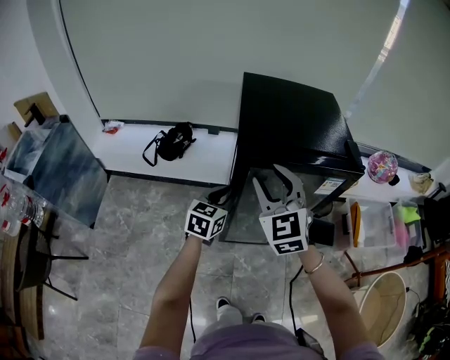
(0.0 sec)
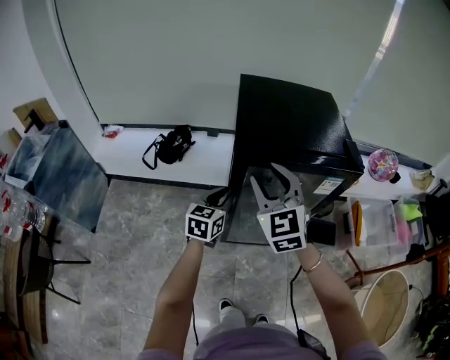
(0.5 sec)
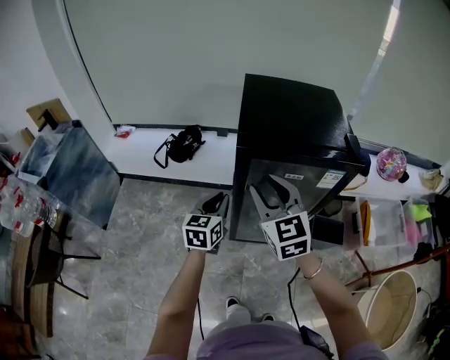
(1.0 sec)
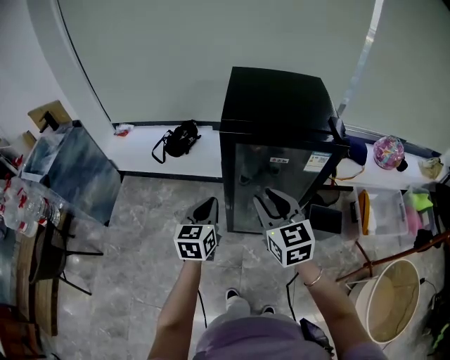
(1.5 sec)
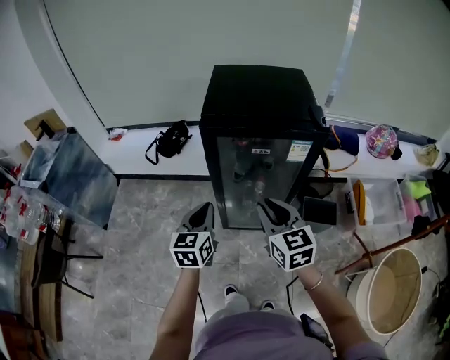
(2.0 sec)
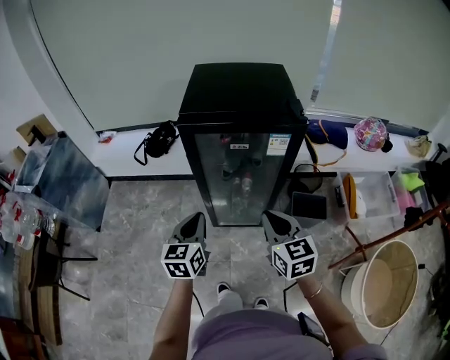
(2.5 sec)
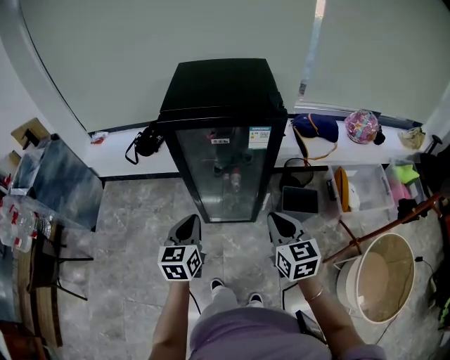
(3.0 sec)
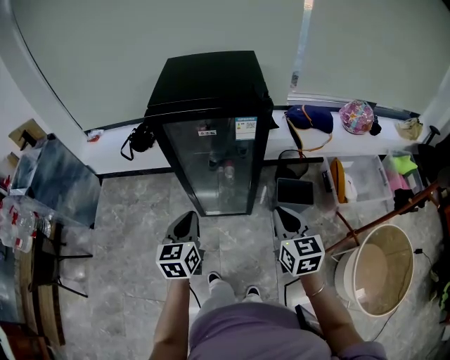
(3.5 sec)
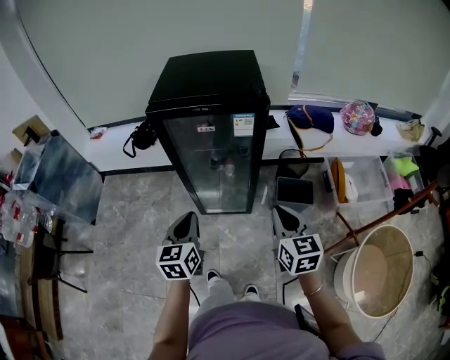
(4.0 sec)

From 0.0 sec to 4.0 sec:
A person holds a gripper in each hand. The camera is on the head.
From 0.0 sec to 2.0 sec: The right gripper is displaced backward, to the right and downward by roughly 20 cm, and swivels some 30 degrees. Meanwhile the left gripper heads backward, covering roughly 15 cm, and rotates about 20 degrees.
From 2.0 sec to 4.0 sec: The right gripper travels to the right and backward by approximately 20 cm. The left gripper goes approximately 15 cm backward and to the right.

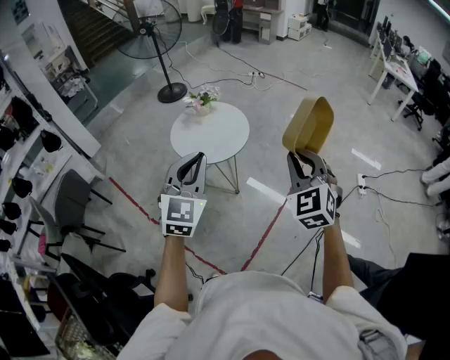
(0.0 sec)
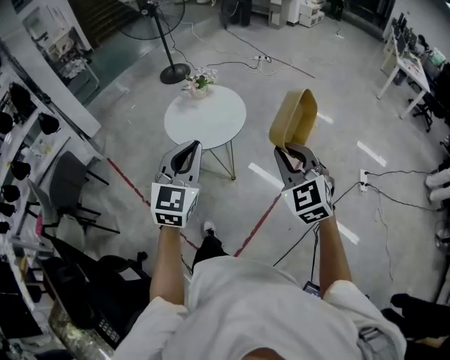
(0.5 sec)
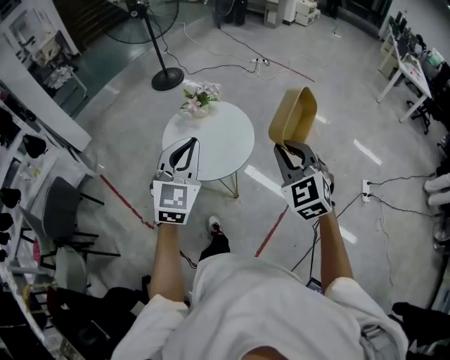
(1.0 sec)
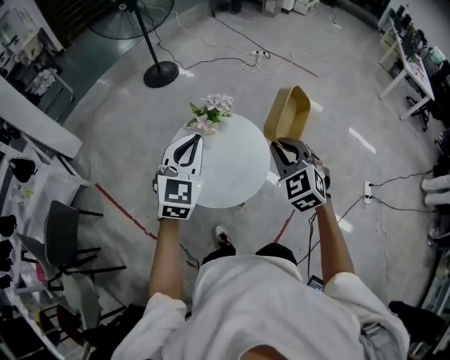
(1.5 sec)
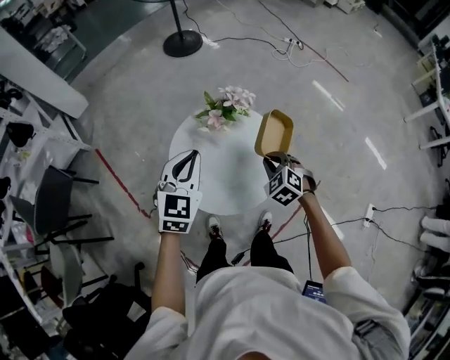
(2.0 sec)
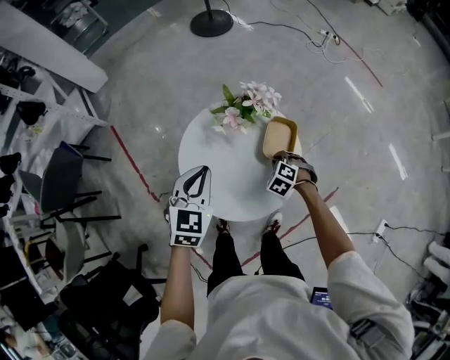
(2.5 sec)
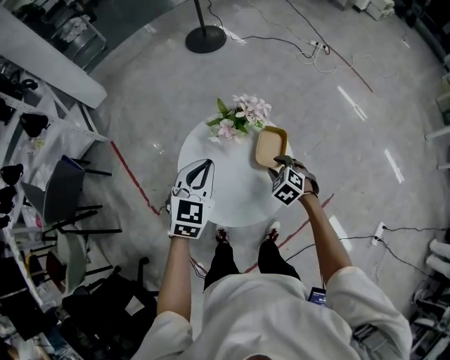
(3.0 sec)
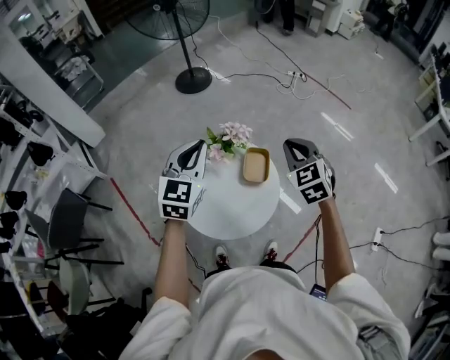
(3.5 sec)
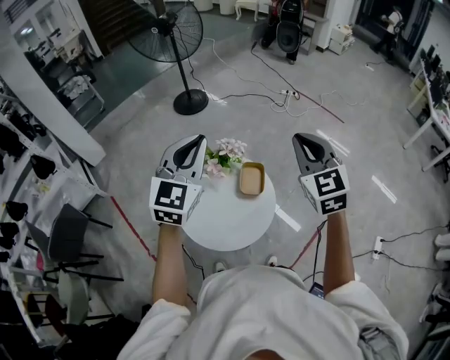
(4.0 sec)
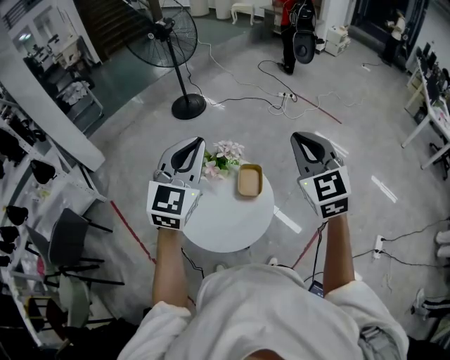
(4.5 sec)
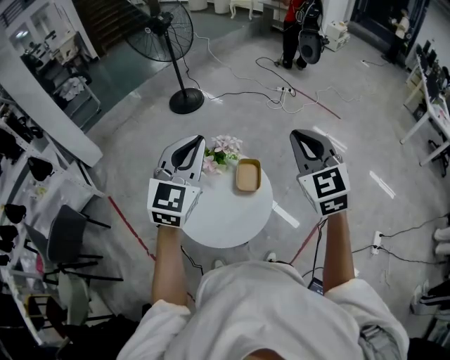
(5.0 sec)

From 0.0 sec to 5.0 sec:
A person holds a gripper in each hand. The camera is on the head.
From 0.0 sec to 2.5 sec: The pair of grippers is taken forward, approximately 60 cm. The left gripper is displaced downward by approximately 25 cm, and swivels roughly 40 degrees. The right gripper heads downward, covering roughly 50 cm, and tips its fingers downward by approximately 50 degrees.
From 2.5 sec to 5.0 sec: The right gripper heads upward, covering approximately 50 cm, tilts its fingers some 60 degrees upward, and opens, then closes once more. Meanwhile the left gripper is displaced upward by about 30 cm, and changes its angle by approximately 30 degrees.

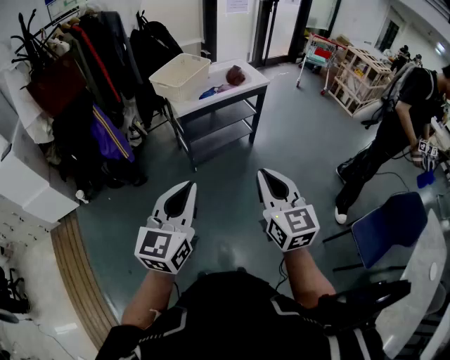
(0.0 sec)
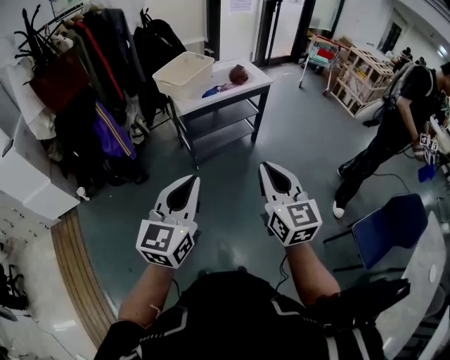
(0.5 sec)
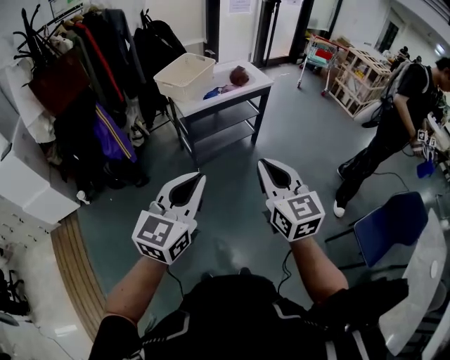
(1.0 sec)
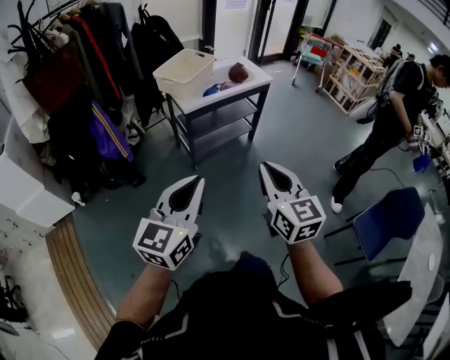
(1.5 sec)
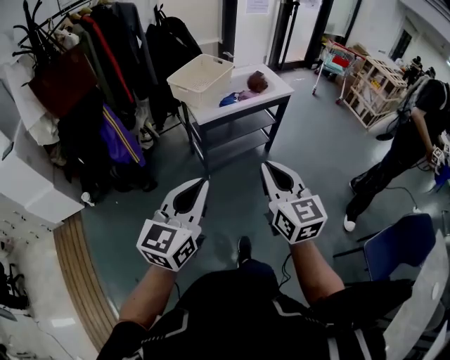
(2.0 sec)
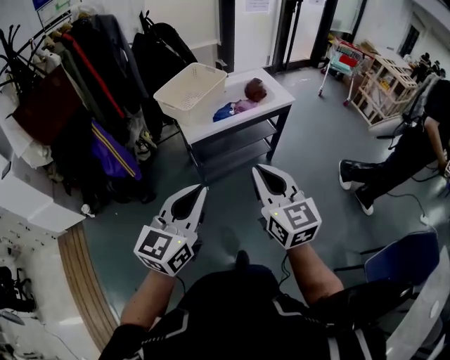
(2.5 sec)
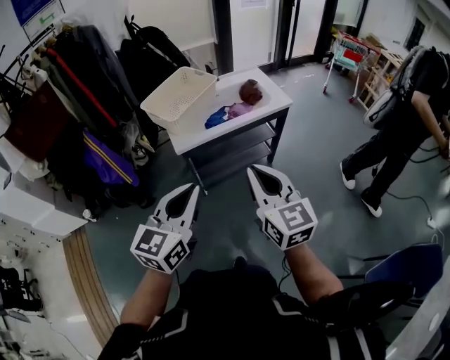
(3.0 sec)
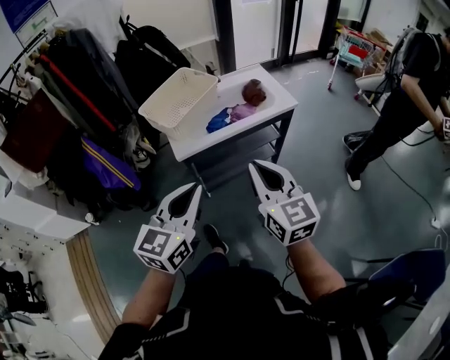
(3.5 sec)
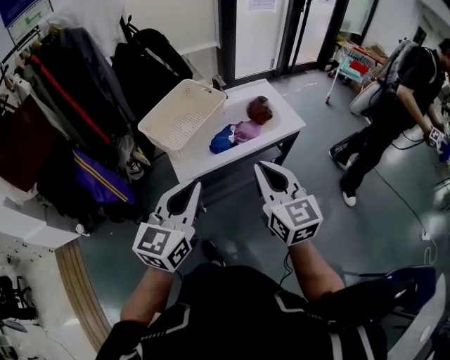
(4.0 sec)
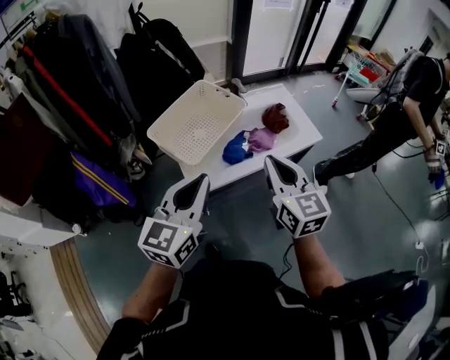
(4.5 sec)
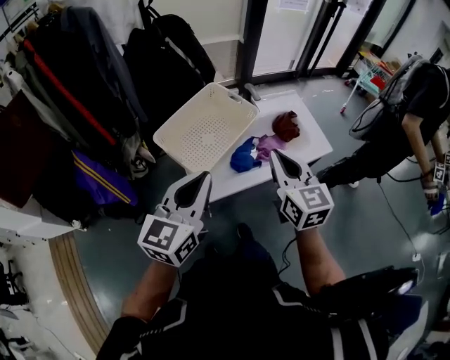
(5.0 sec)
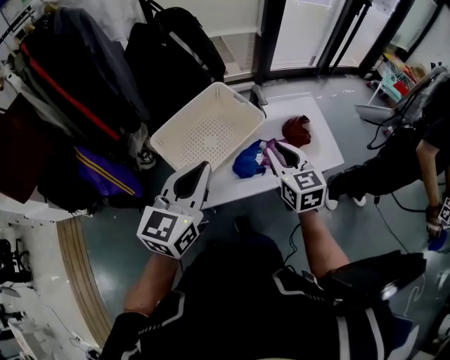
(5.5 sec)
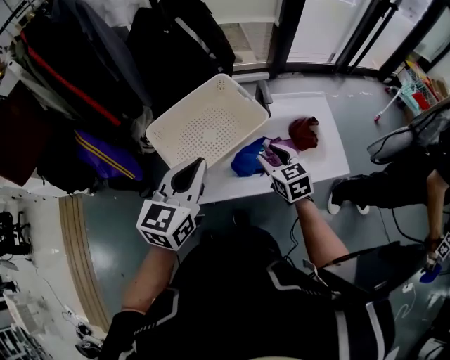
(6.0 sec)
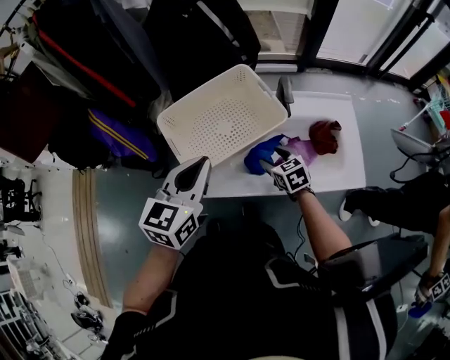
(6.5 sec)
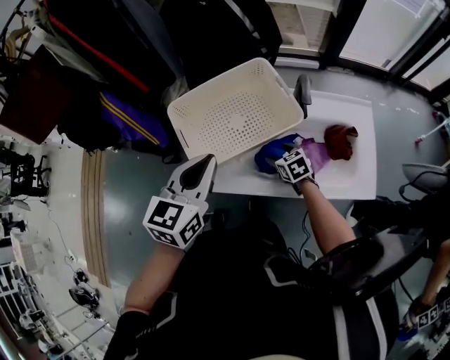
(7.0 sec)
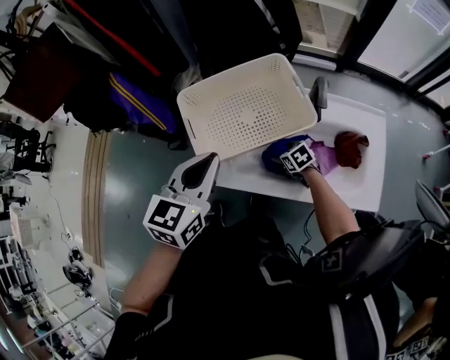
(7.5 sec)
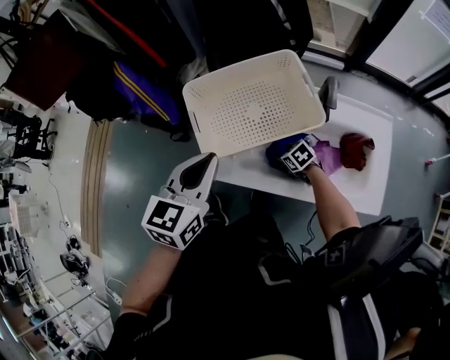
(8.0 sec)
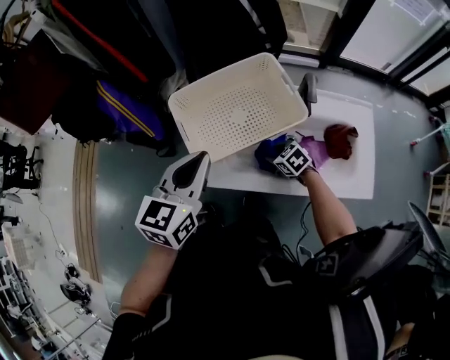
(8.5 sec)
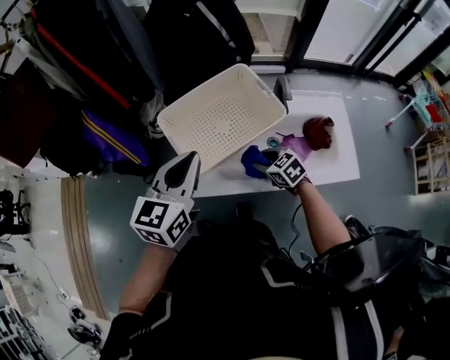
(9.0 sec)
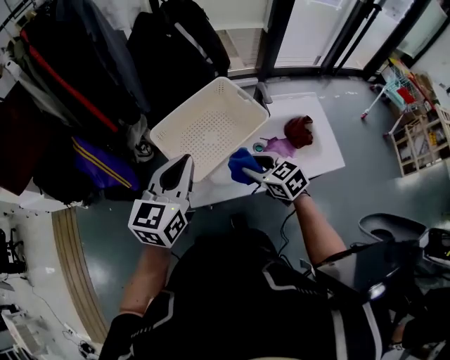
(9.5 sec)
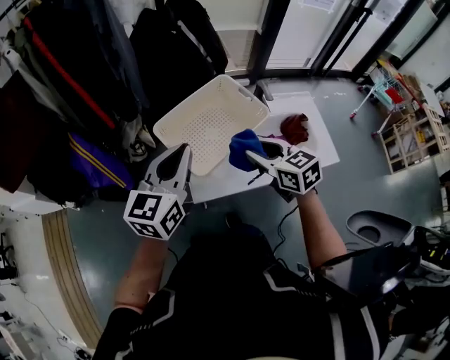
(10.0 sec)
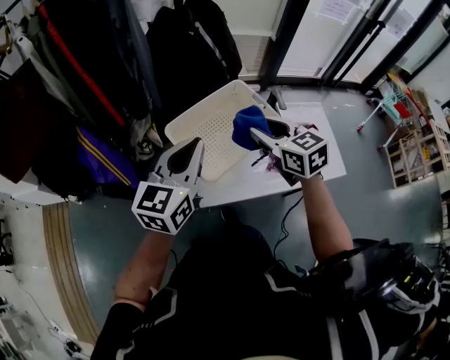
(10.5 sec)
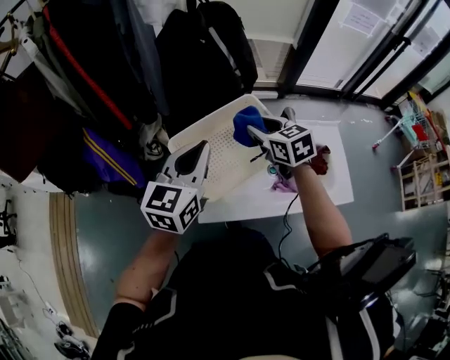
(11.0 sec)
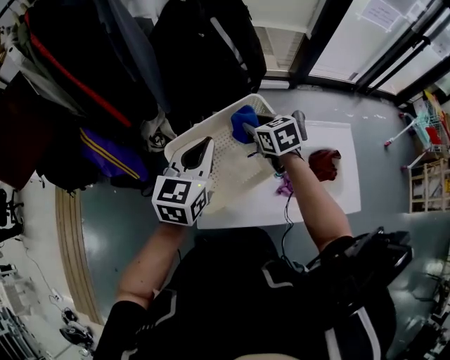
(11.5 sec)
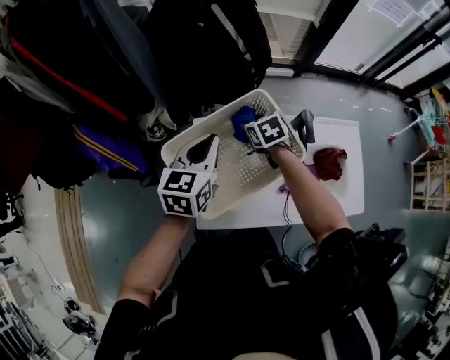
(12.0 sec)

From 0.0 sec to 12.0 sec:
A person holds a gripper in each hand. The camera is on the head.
From 0.0 sec to 2.0 sec: The two grippers go approximately 15 cm forward and to the left.
From 2.0 sec to 4.0 sec: Both grippers travel together forward, approximately 40 cm.
From 4.0 sec to 6.0 sec: The right gripper moves forward and downward, approximately 40 cm, changes its angle by roughly 30 degrees, and opens; the left gripper shifts approximately 25 cm forward.
From 6.0 sec to 8.0 sec: The left gripper moves some 5 cm, and rotates approximately 20 degrees. The right gripper is displaced downward by some 25 cm, swivels some 50 degrees, and opens and closes again.
From 8.0 sec to 10.0 sec: The left gripper goes roughly 5 cm upward, and swivels some 30 degrees. The right gripper shifts some 35 cm upward, and tilts its fingers roughly 30 degrees upward.
From 10.0 sec to 12.0 sec: Both grippers travel together forward and downward, some 25 cm. The left gripper turns by about 20 degrees. The right gripper rotates some 30 degrees.

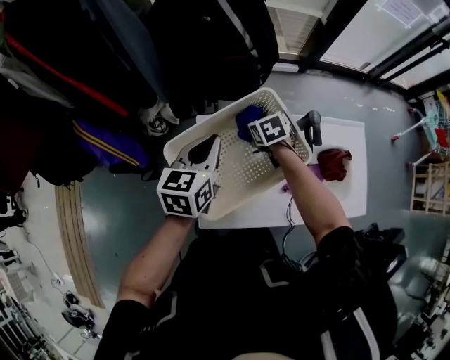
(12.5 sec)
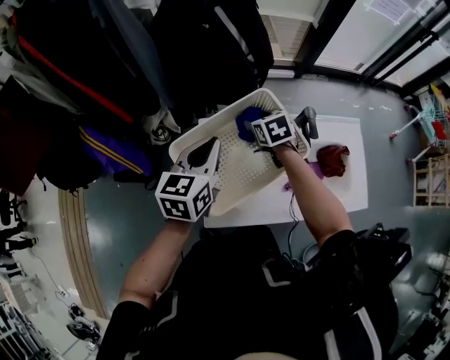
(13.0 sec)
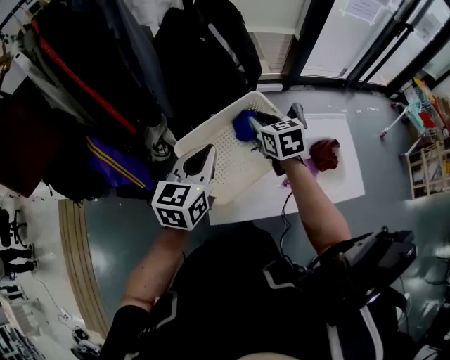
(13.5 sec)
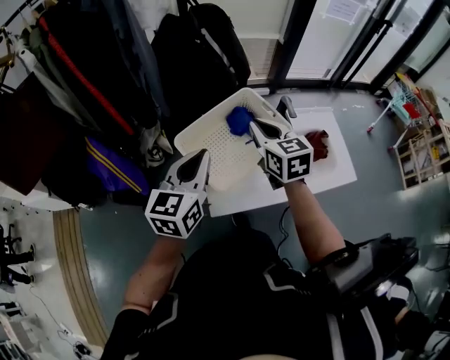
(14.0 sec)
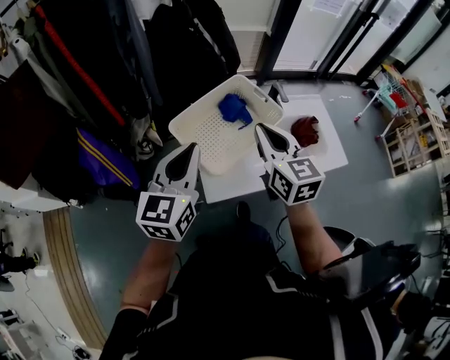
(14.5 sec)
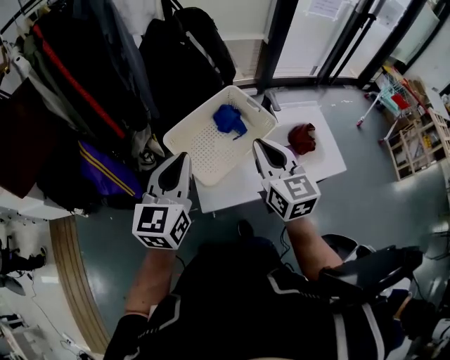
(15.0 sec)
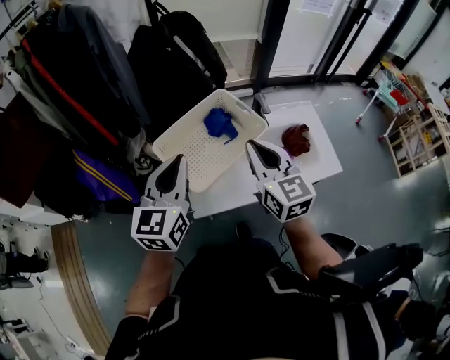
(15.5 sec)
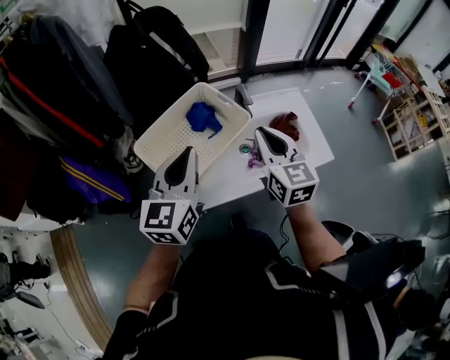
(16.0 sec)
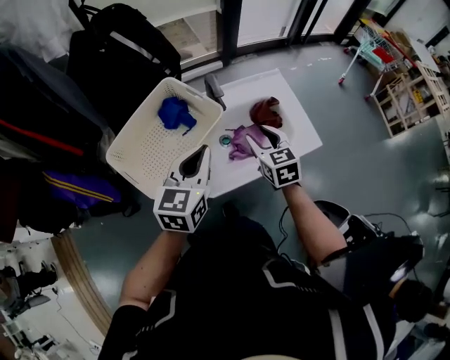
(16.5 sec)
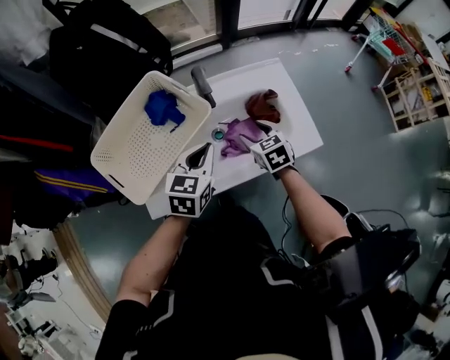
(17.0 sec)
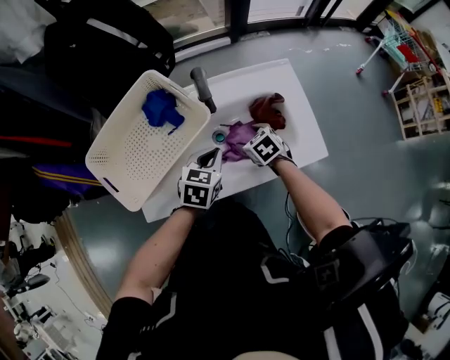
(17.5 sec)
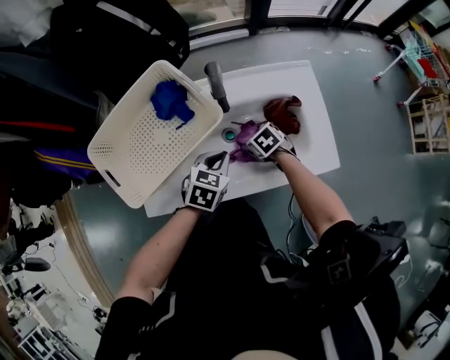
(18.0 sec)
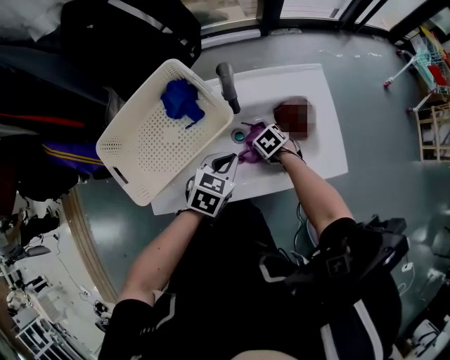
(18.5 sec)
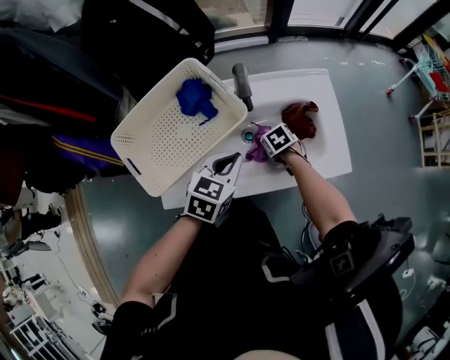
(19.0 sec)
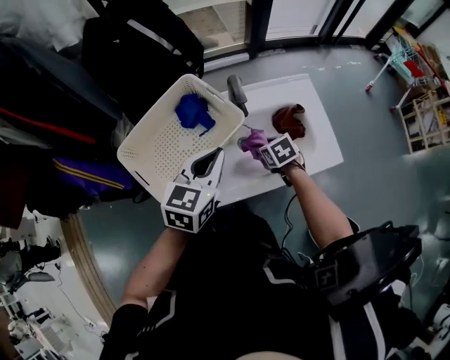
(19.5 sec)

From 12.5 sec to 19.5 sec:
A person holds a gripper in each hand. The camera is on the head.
From 12.5 sec to 14.5 sec: The left gripper shifts about 20 cm backward and upward, and rotates about 20 degrees. Meanwhile the right gripper shifts roughly 35 cm upward and backward, angles its fingers upward, by about 50 degrees, and closes up.
From 14.5 sec to 16.0 sec: Both grippers move to the right, about 15 cm.
From 16.0 sec to 17.5 sec: The right gripper shifts about 35 cm downward, tips its fingers downward by some 50 degrees, and opens up; the left gripper shifts some 35 cm downward and to the right, and tilts its fingers roughly 40 degrees downward.
From 17.5 sec to 19.5 sec: The right gripper travels downward and back again, some 10 cm each way, and closes; the left gripper travels upward by about 15 cm.
